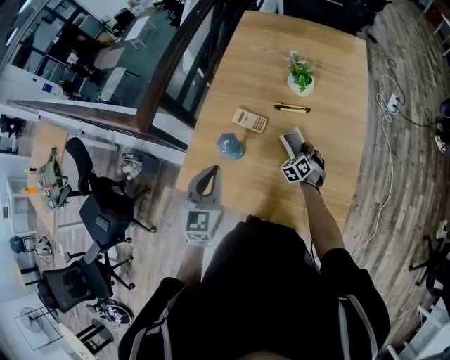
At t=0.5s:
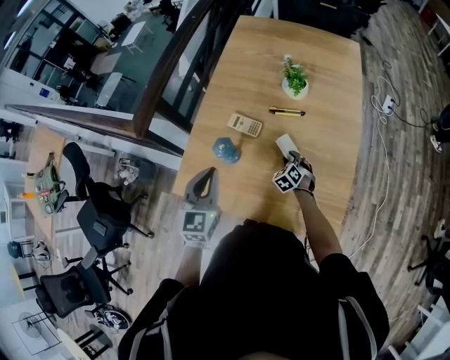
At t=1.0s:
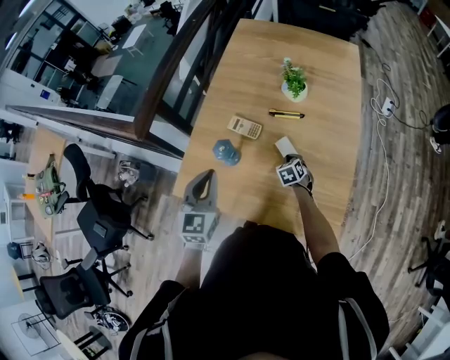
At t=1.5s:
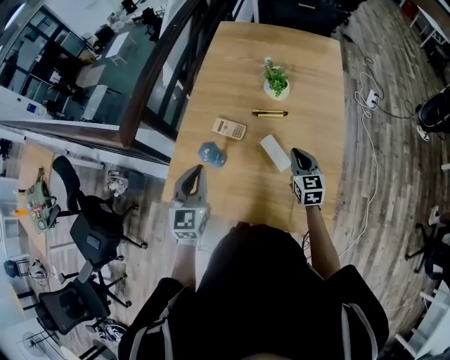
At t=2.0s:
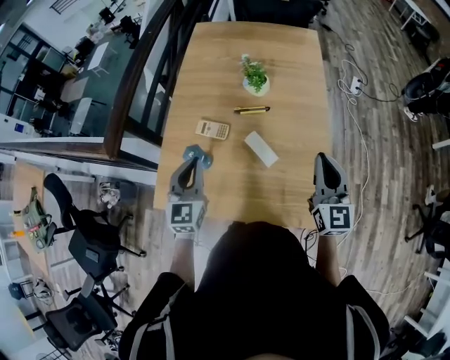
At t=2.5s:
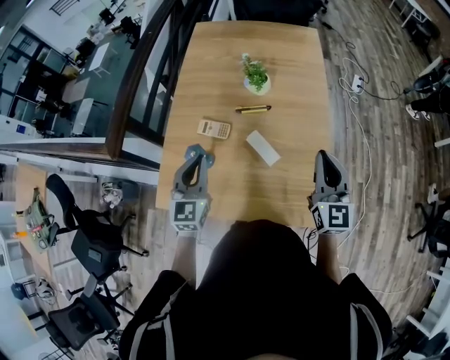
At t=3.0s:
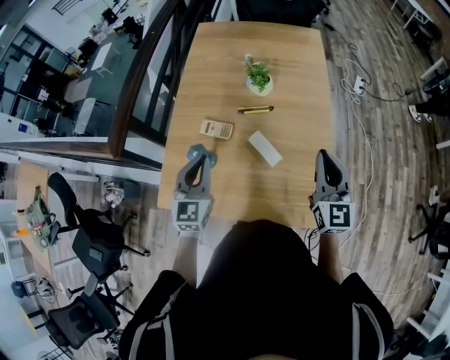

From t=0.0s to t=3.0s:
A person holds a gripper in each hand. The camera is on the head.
From t=0.0s to t=1.5s: The right gripper moves upward, about 15 cm, swivels about 50 degrees, and opens, then closes again.
From t=1.5s to t=3.0s: The right gripper travels upward, to the right and backward by some 20 cm, and swivels about 20 degrees. The left gripper changes place by roughly 5 cm.

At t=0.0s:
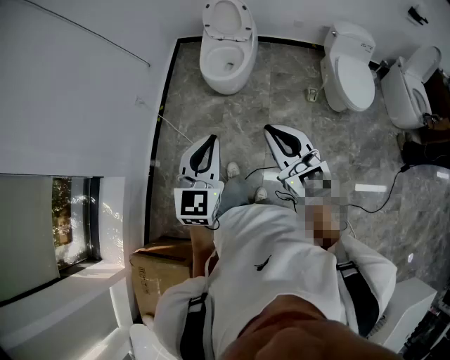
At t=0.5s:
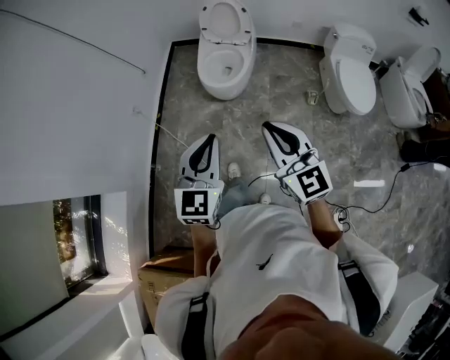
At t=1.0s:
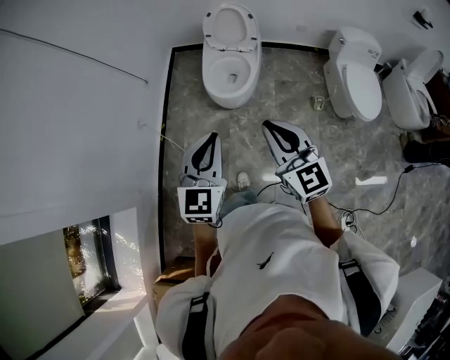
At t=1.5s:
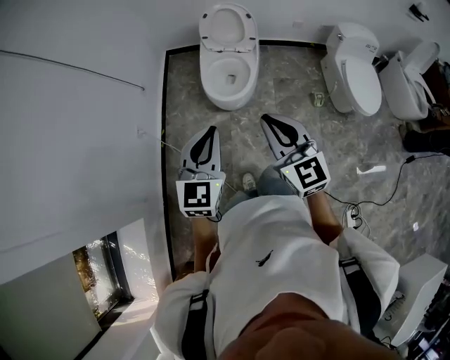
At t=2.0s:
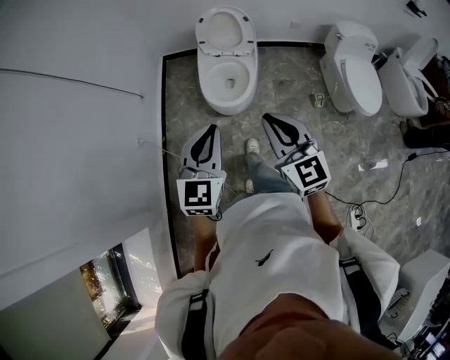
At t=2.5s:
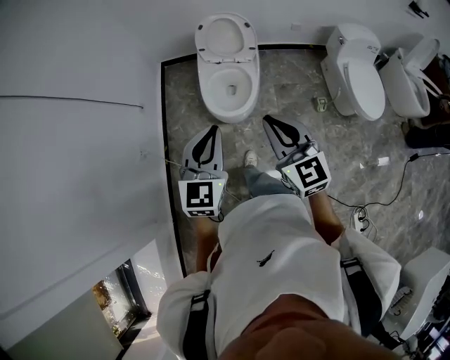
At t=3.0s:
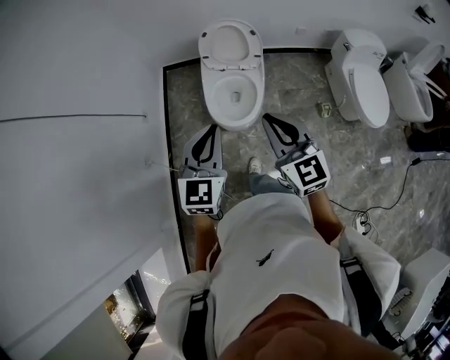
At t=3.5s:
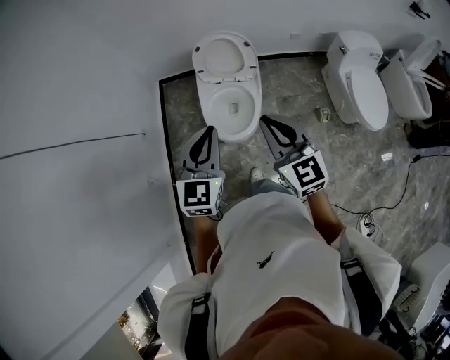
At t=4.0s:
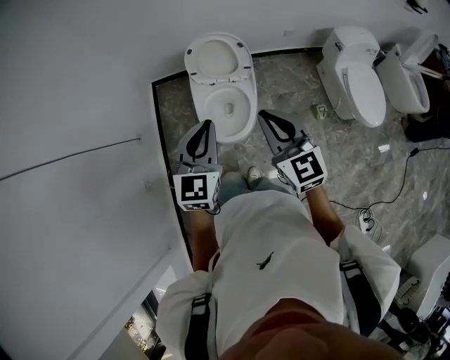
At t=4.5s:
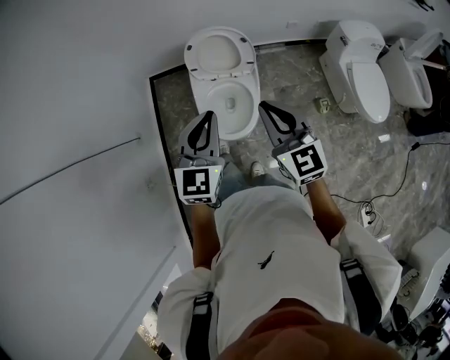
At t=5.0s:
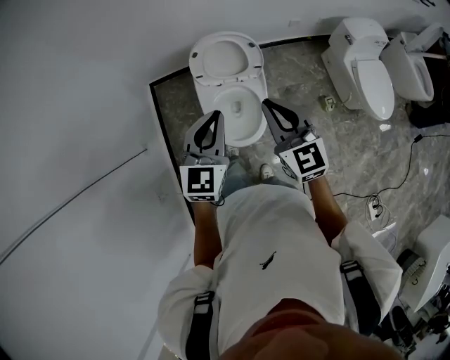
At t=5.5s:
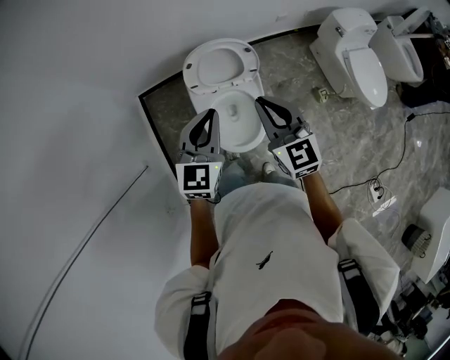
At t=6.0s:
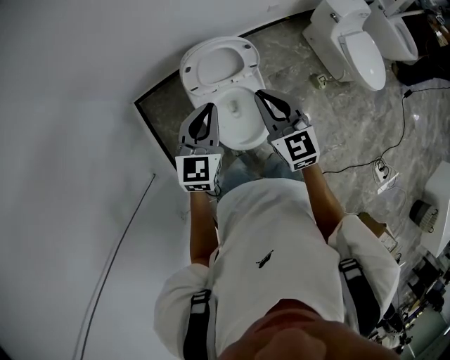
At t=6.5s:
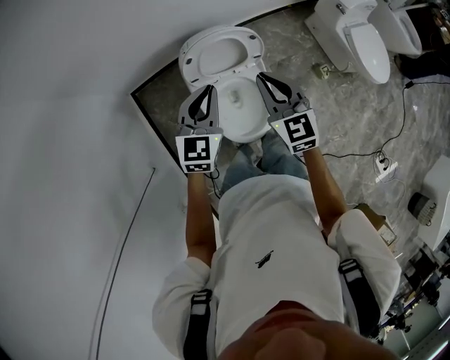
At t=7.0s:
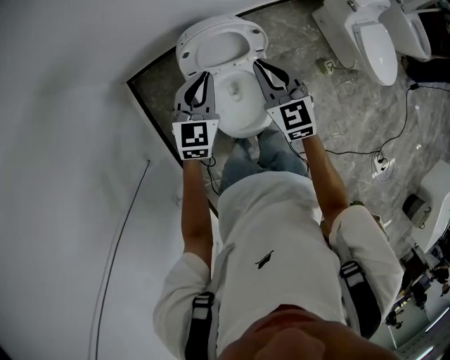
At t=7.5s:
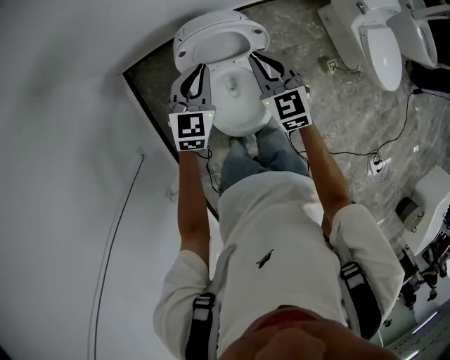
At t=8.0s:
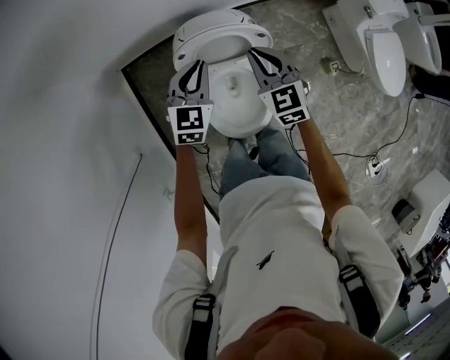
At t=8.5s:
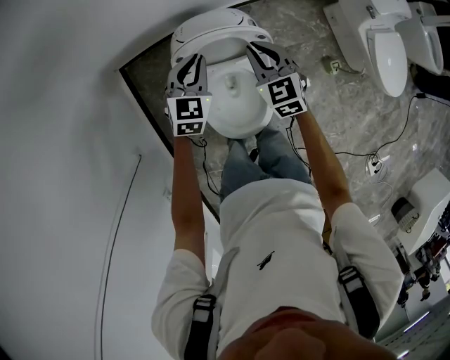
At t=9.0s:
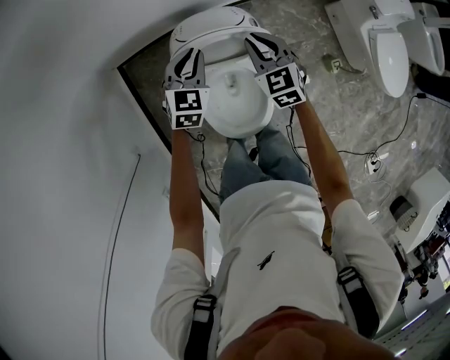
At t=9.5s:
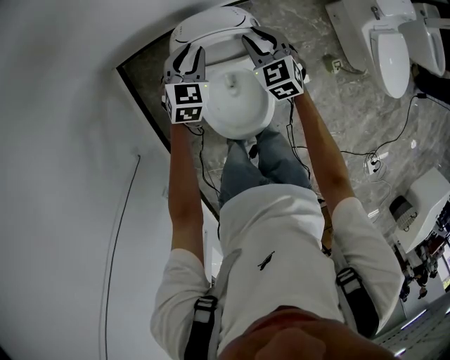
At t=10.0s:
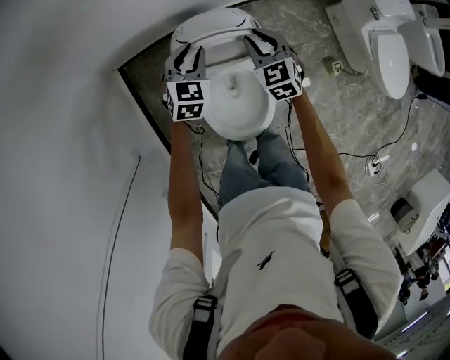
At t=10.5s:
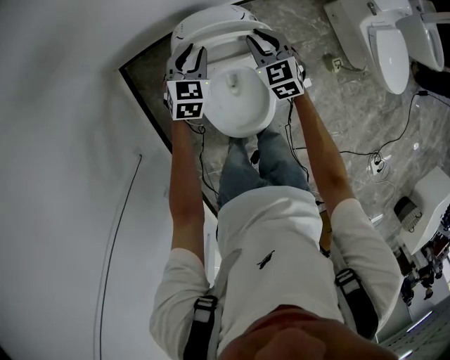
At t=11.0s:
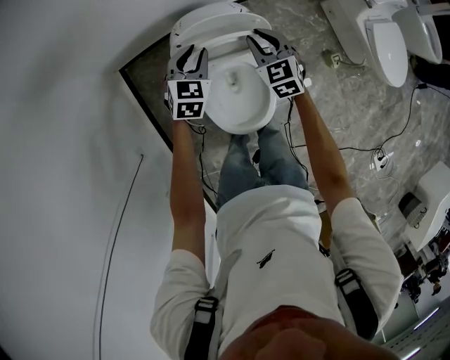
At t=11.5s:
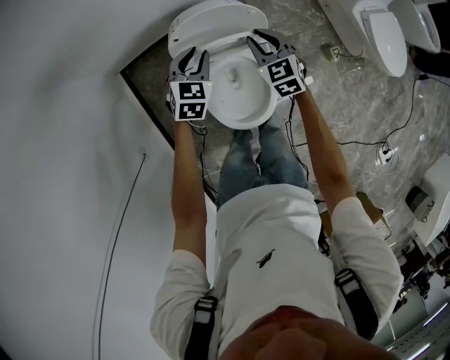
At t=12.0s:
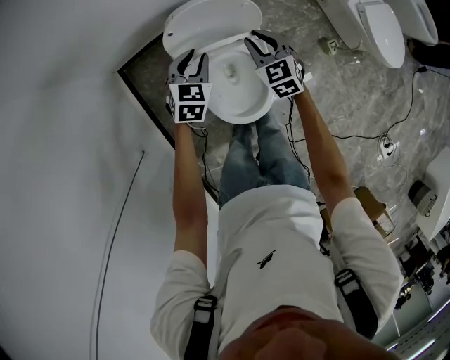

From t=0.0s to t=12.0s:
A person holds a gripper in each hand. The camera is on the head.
From t=0.0s to t=2.0s: The two grippers go roughly 30 cm forward.
From t=2.0s to t=4.0s: Both grippers travel together forward, approximately 25 cm.
From t=4.0s to t=6.0s: The right gripper moves forward and to the left, roughly 25 cm, and swivels about 20 degrees. Meanwhile the left gripper heads forward, covering approximately 25 cm, and changes its angle by roughly 20 degrees.
From t=6.0s to t=8.0s: Both grippers move forward and downward, some 20 cm.
From t=8.0s to t=10.0s: The two grippers go roughly 10 cm downward and forward.
From t=10.0s to t=12.0s: The grippers both shift backward by about 10 cm.

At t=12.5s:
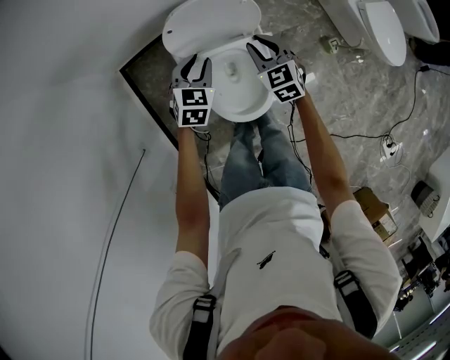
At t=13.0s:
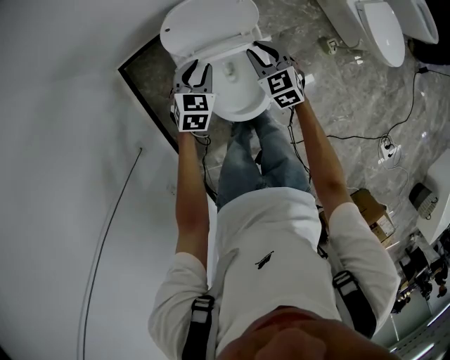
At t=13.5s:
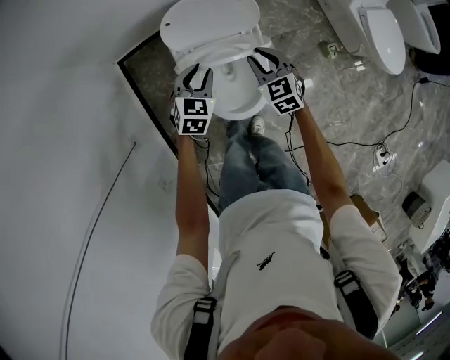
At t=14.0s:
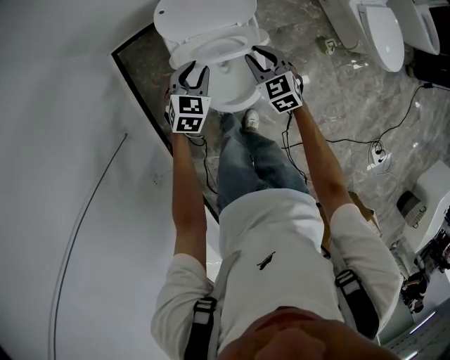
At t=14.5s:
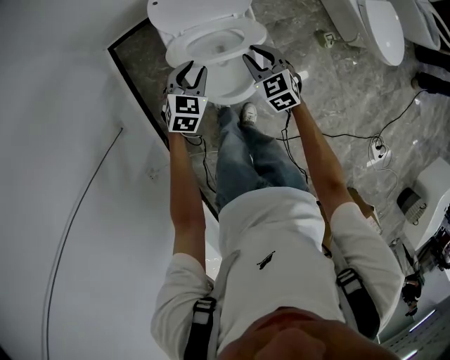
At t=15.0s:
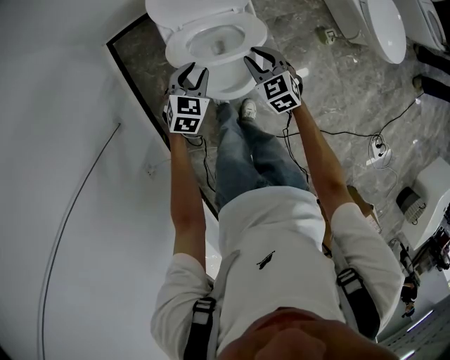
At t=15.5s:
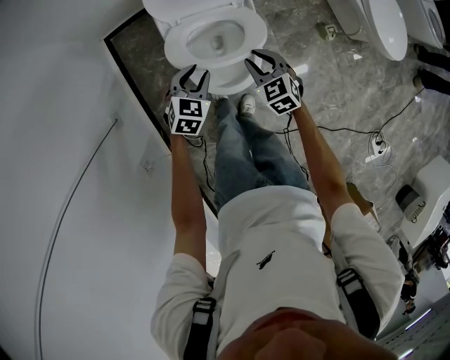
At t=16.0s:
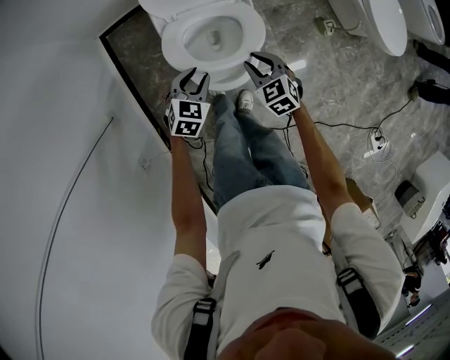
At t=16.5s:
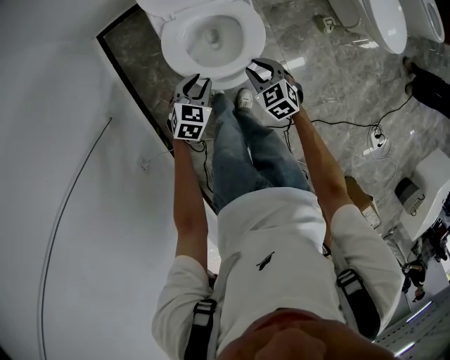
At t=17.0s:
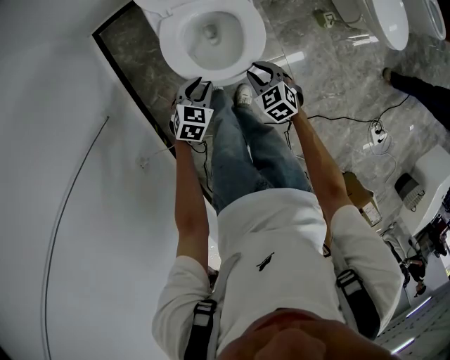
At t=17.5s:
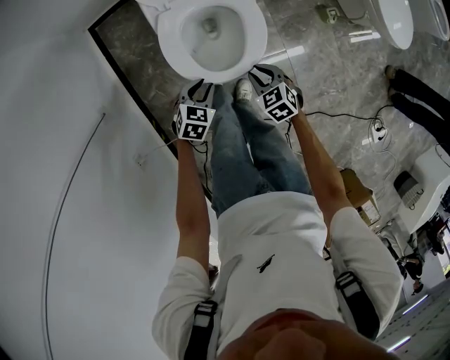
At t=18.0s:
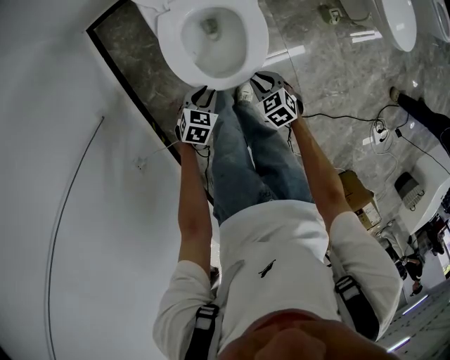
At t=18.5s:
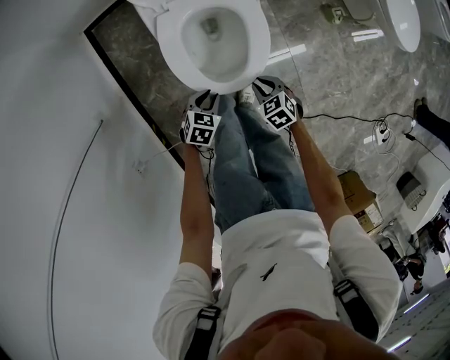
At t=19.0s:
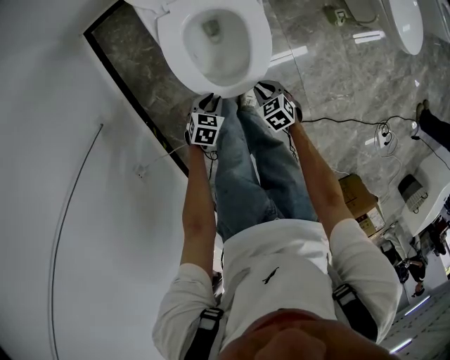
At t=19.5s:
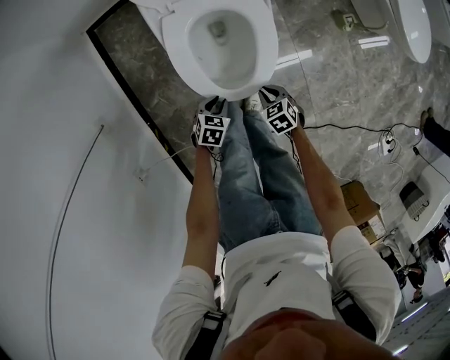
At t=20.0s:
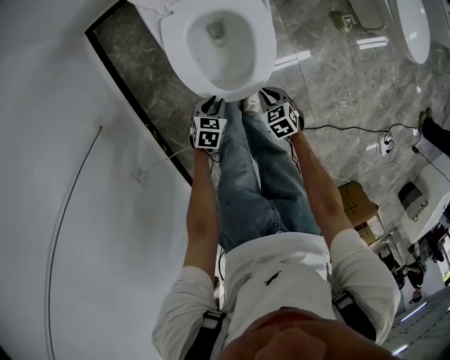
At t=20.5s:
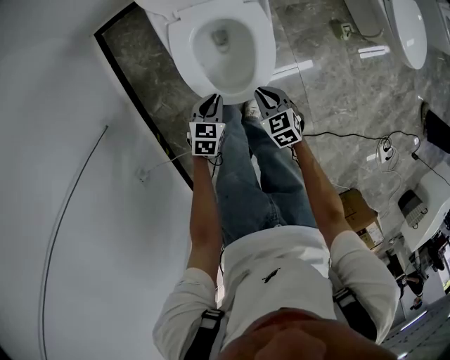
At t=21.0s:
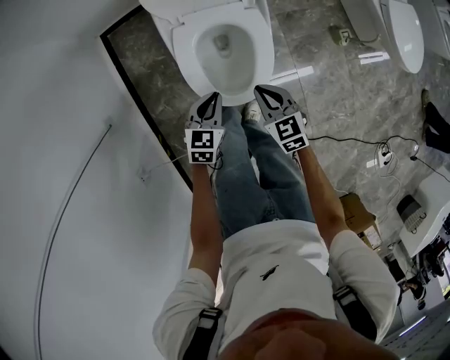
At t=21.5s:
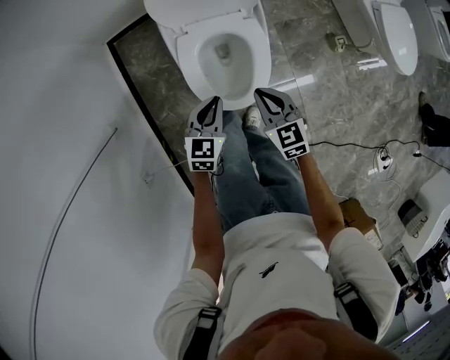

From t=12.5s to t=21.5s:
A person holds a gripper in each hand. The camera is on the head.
From t=12.5s to t=14.5s: The grippers both shift backward by roughly 10 cm.
From t=14.5s to t=17.0s: The grippers both shift backward and downward by roughly 15 cm.
From t=17.0s to t=19.5s: The two grippers go approximately 20 cm downward.
From t=19.5s to t=21.5s: The grippers both shift upward by roughly 25 cm. The right gripper angles its fingers upward, by roughly 30 degrees. Meanwhile the left gripper rotates roughly 30 degrees.

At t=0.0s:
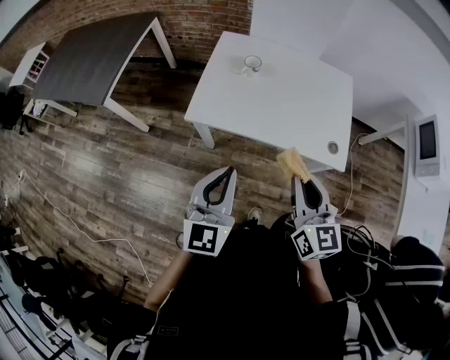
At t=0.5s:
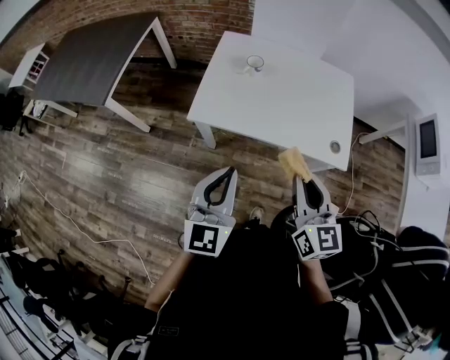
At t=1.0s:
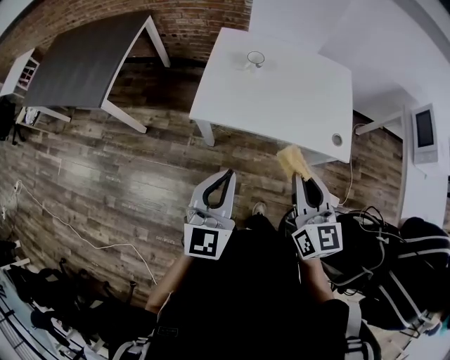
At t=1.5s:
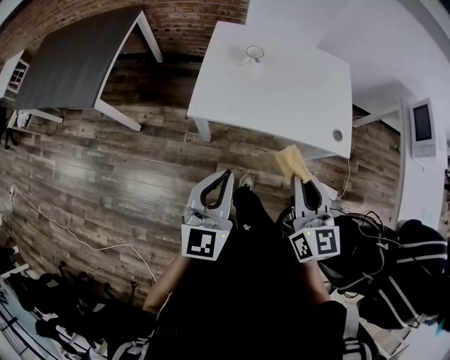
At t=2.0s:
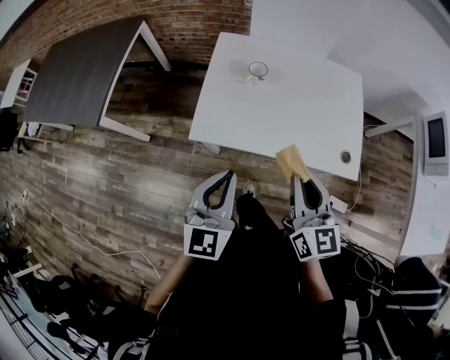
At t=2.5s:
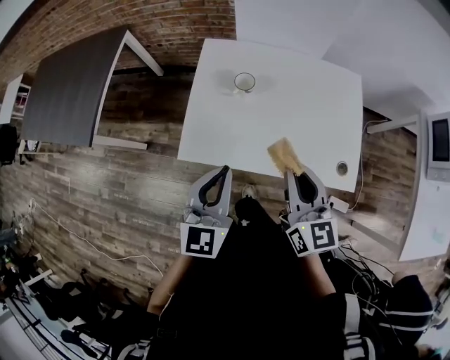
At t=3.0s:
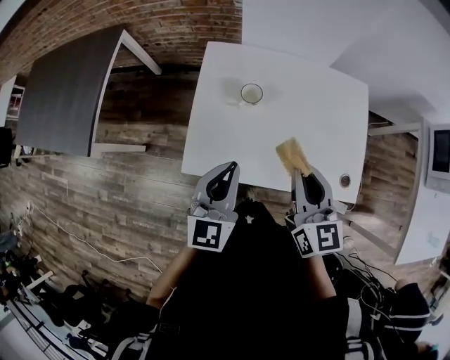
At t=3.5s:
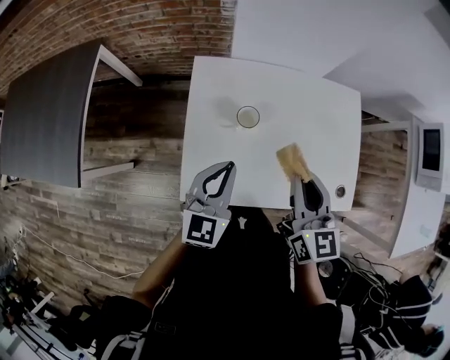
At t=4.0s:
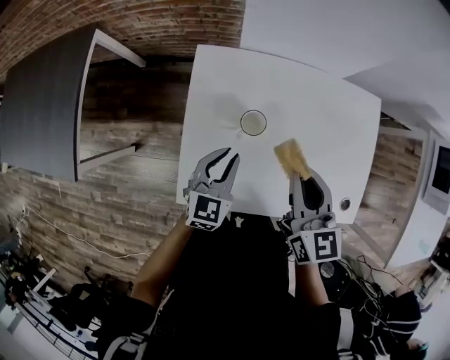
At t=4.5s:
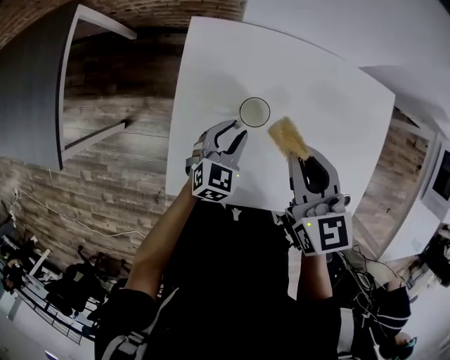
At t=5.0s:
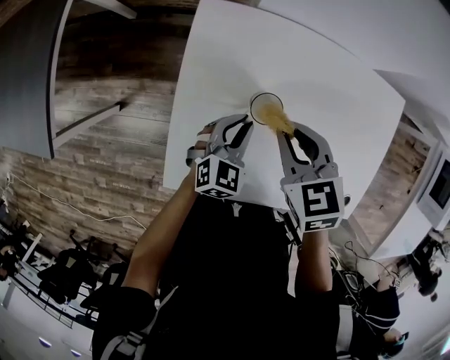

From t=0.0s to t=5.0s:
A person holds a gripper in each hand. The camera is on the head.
From t=0.0s to t=2.5s: The two grippers go some 20 cm forward.
From t=2.5s to t=5.0s: The right gripper heads forward, downward and to the left, covering some 30 cm, and tips its fingers downward by about 40 degrees. Meanwhile the left gripper moves downward and forward, roughly 35 cm, and rotates some 30 degrees.
